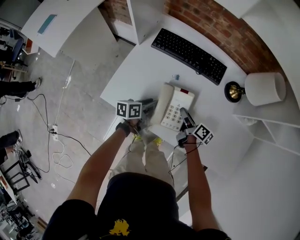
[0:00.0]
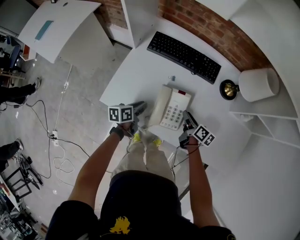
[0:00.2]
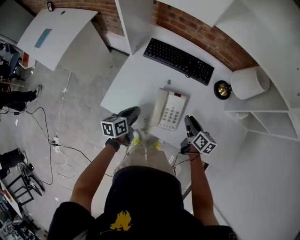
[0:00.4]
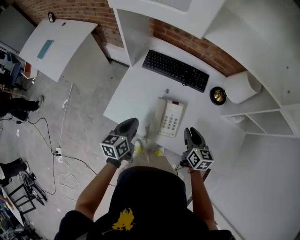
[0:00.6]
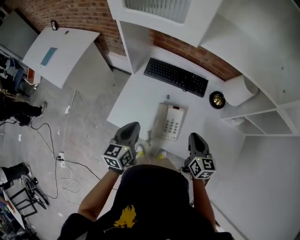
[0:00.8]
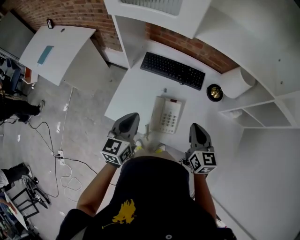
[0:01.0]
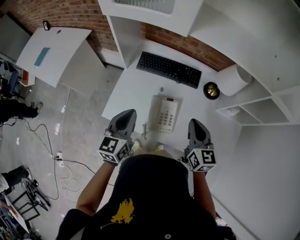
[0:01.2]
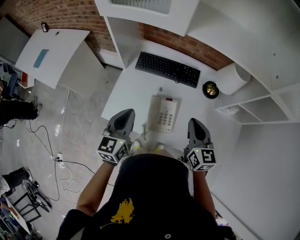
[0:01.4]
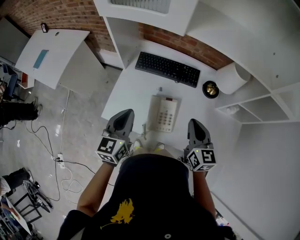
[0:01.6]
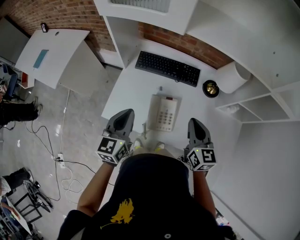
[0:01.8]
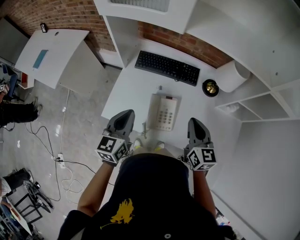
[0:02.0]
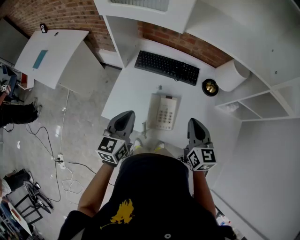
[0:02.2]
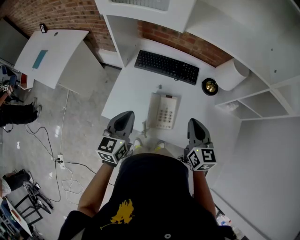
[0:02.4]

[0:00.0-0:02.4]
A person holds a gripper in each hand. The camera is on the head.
0.0 to 1.2 s: The two grippers go some 30 cm upward. The left gripper rotates approximately 50 degrees, and closes up, while the right gripper rotates around the line of its fingers by some 50 degrees, counterclockwise from behind, and closes up.
1.2 to 2.4 s: The grippers make only small movements.

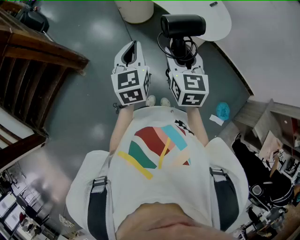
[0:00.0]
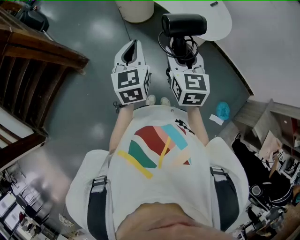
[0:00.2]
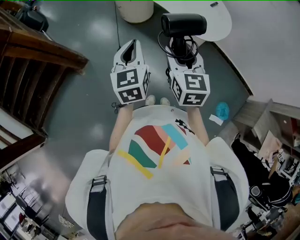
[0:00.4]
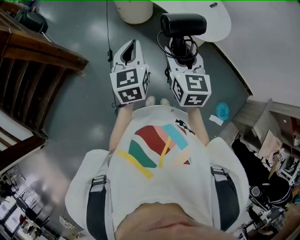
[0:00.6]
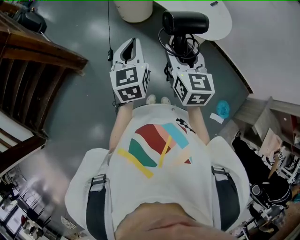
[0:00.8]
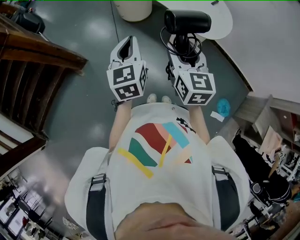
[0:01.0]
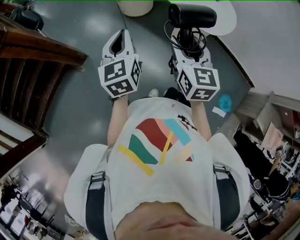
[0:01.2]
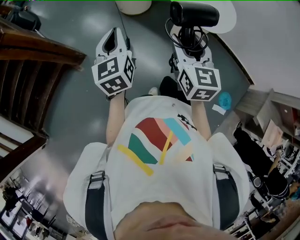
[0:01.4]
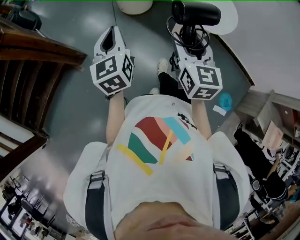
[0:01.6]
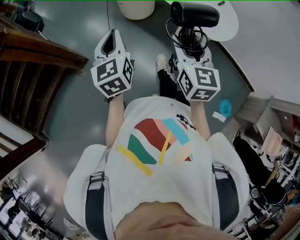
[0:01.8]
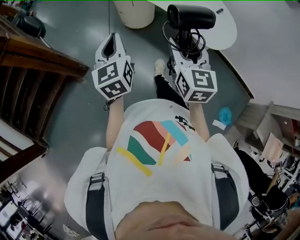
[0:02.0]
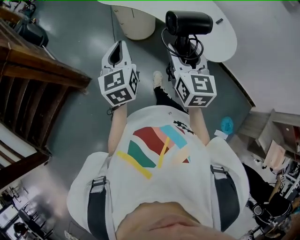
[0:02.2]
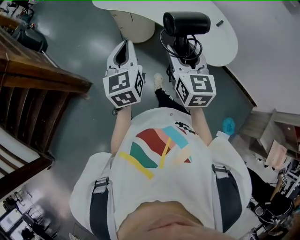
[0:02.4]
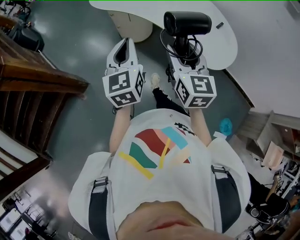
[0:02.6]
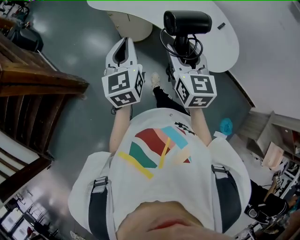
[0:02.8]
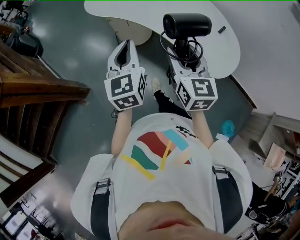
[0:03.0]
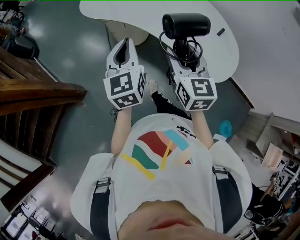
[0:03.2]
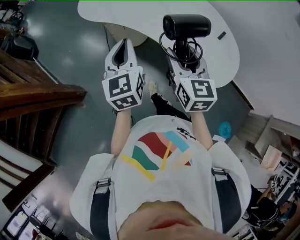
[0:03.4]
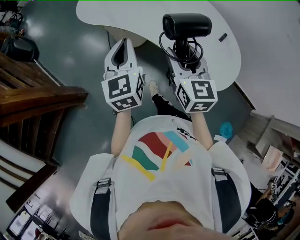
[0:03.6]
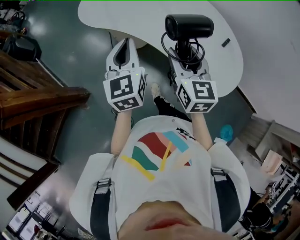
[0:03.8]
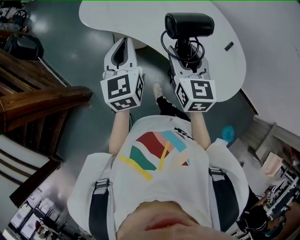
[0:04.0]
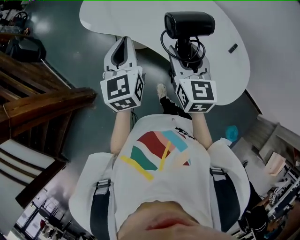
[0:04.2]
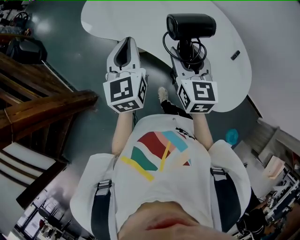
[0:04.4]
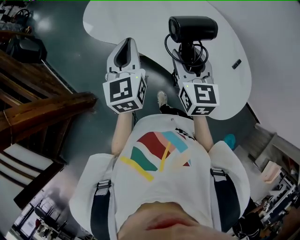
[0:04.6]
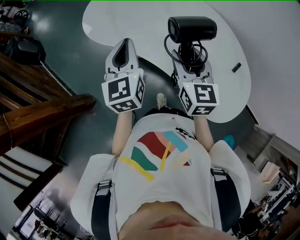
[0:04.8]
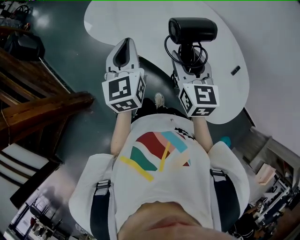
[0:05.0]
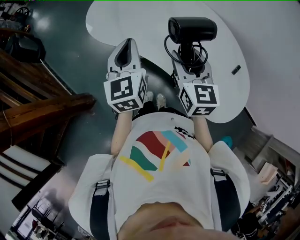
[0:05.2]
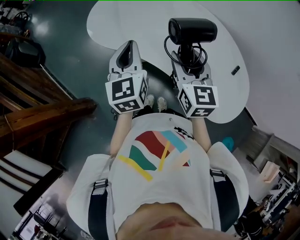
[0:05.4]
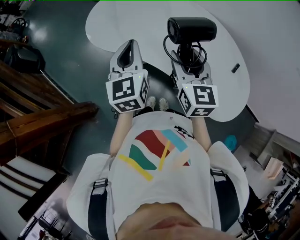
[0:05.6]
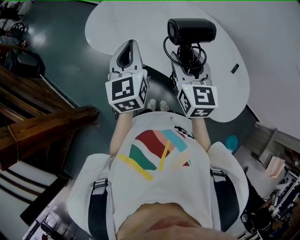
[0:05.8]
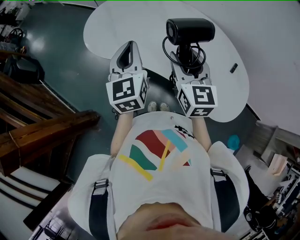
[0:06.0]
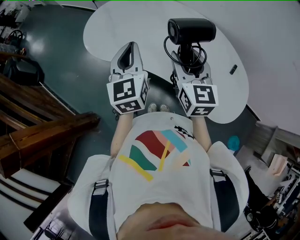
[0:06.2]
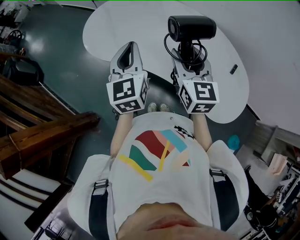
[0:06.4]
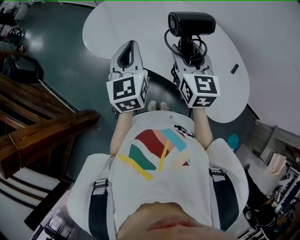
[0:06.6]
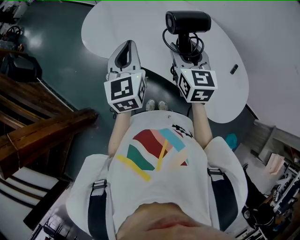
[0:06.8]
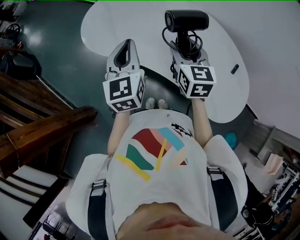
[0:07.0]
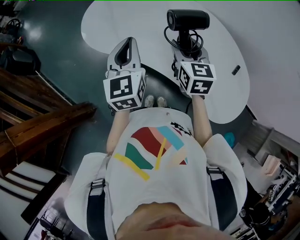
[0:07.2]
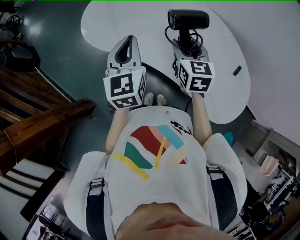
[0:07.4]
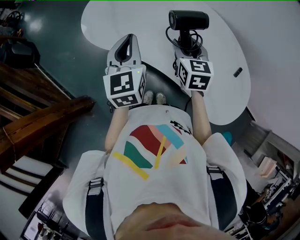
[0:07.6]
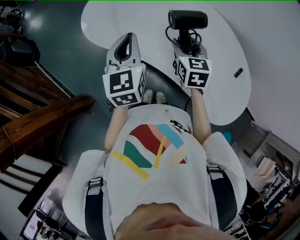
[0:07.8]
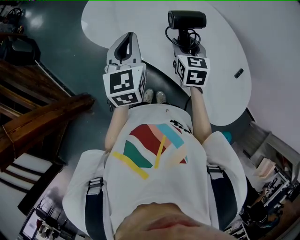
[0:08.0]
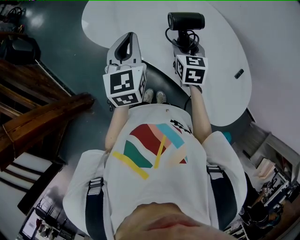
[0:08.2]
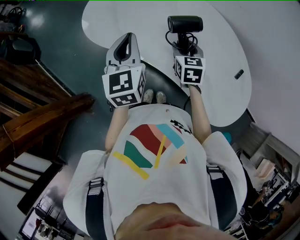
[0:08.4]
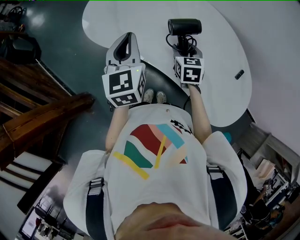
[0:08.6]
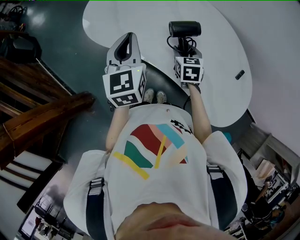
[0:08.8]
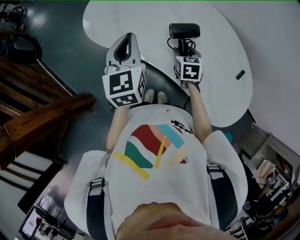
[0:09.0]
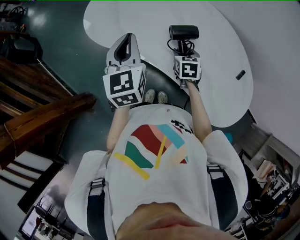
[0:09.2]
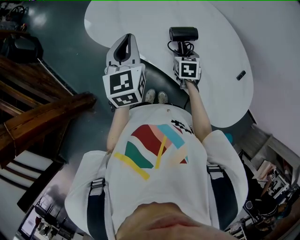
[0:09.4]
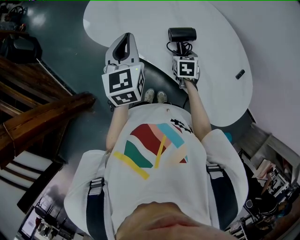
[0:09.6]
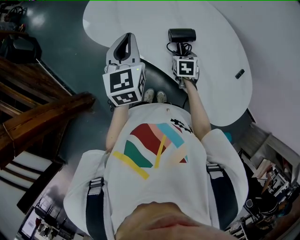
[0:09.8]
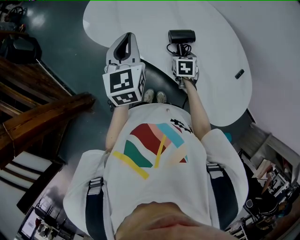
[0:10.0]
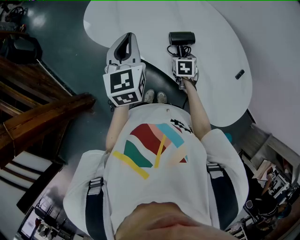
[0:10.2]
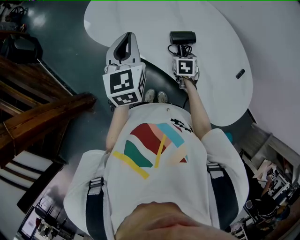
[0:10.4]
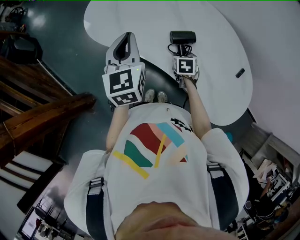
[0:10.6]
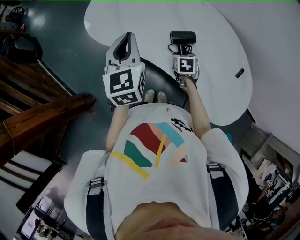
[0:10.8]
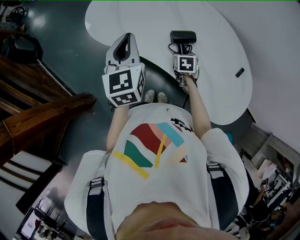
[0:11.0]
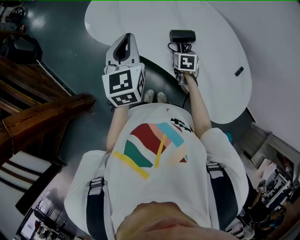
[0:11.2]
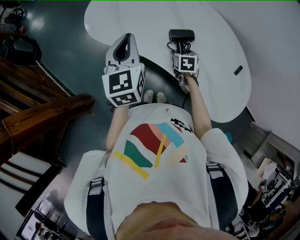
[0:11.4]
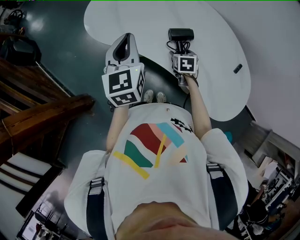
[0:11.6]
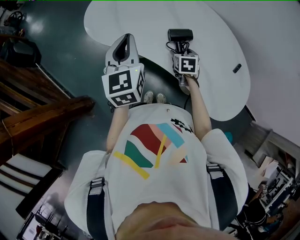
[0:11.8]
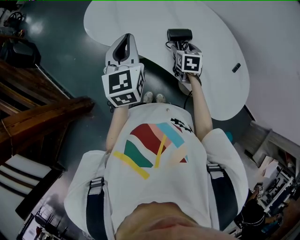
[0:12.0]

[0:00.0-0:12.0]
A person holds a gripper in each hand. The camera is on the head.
0.0 to 1.6 s: The right gripper changes place by approximately 5 cm. The left gripper heads to the left and forward, covering approximately 15 cm.
1.6 to 3.0 s: The left gripper travels forward and to the right by some 20 cm. The right gripper is displaced forward by some 20 cm.
3.0 to 4.4 s: Both grippers travel together forward, some 20 cm.
4.4 to 6.0 s: Both grippers travel together forward, some 5 cm.
6.0 to 7.6 s: The right gripper heads downward and forward, covering roughly 15 cm. The left gripper moves about 5 cm.
7.6 to 9.0 s: The right gripper moves downward, some 15 cm.
9.0 to 10.4 s: The right gripper moves downward, about 5 cm.
10.4 to 12.0 s: The right gripper travels upward by about 5 cm.

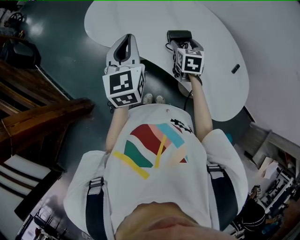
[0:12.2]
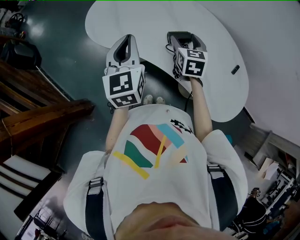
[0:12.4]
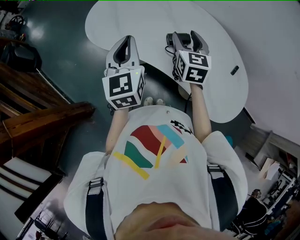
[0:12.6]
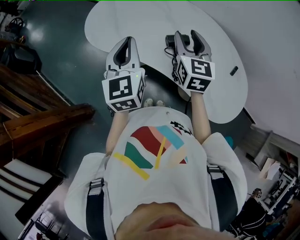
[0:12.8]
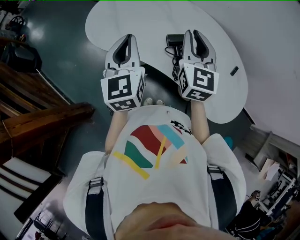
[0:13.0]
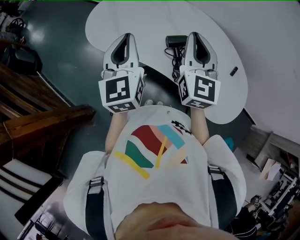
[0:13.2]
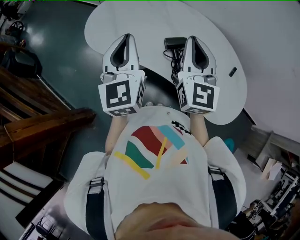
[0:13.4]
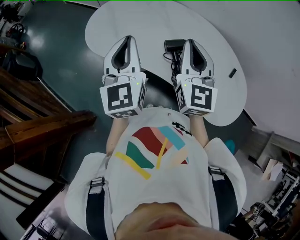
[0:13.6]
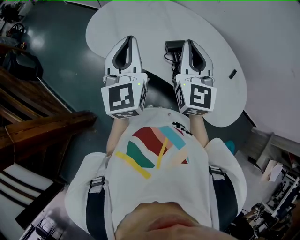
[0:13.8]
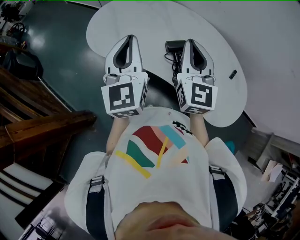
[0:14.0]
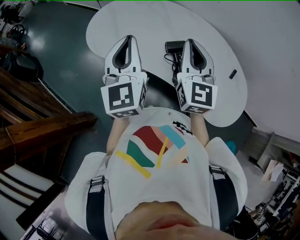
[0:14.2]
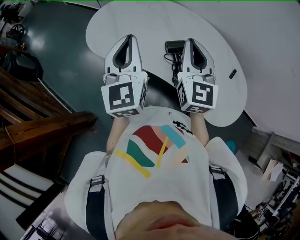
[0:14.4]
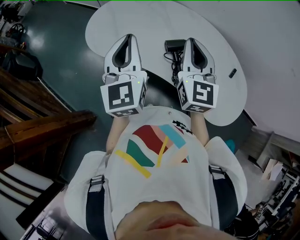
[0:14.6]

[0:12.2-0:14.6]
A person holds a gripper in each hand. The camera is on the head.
12.2 to 13.4 s: The left gripper shifts roughly 5 cm upward, while the right gripper travels upward by roughly 25 cm, angles its fingers upward, by about 40 degrees, and closes up.
13.4 to 14.6 s: Both grippers stay about where they are.

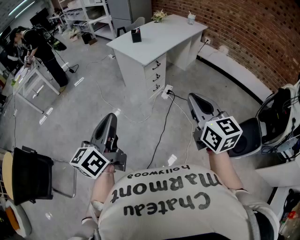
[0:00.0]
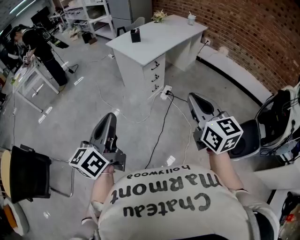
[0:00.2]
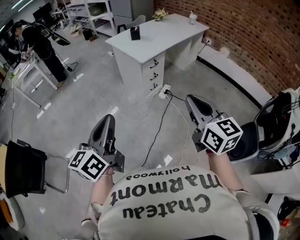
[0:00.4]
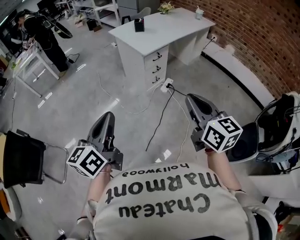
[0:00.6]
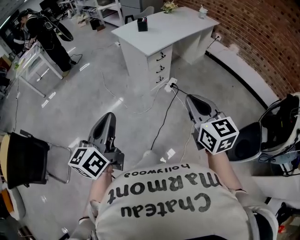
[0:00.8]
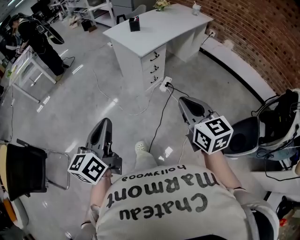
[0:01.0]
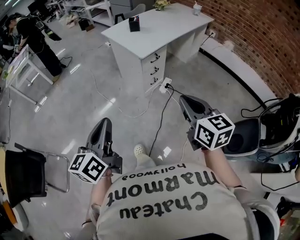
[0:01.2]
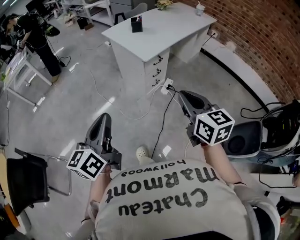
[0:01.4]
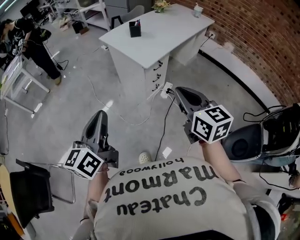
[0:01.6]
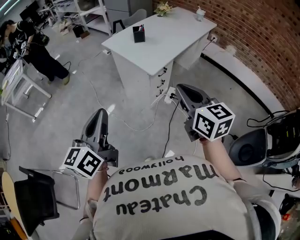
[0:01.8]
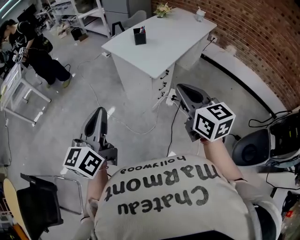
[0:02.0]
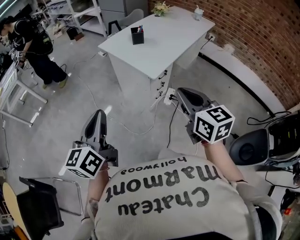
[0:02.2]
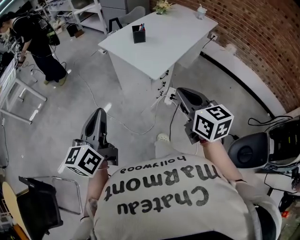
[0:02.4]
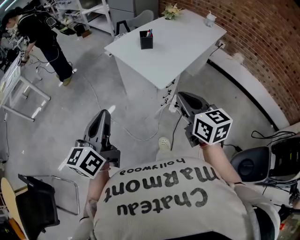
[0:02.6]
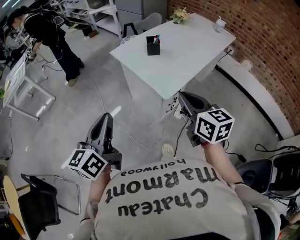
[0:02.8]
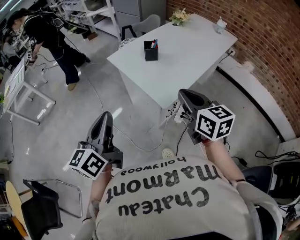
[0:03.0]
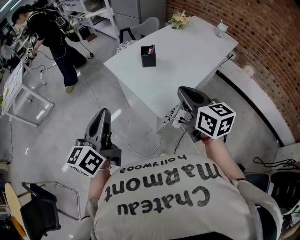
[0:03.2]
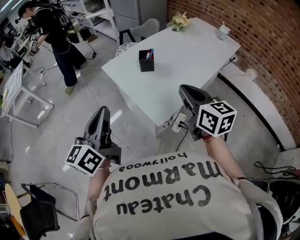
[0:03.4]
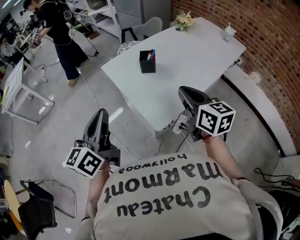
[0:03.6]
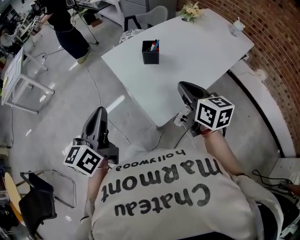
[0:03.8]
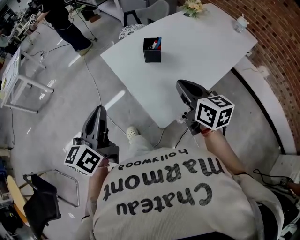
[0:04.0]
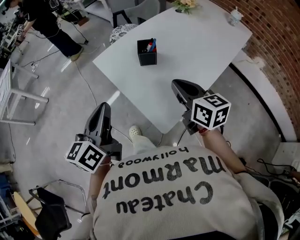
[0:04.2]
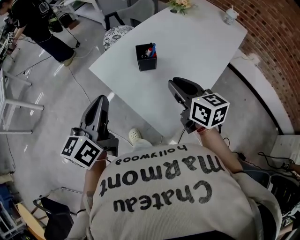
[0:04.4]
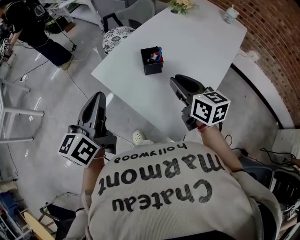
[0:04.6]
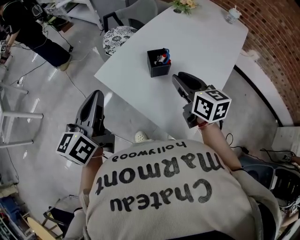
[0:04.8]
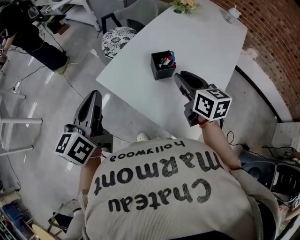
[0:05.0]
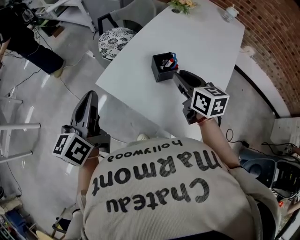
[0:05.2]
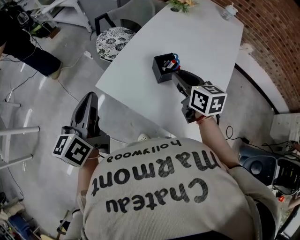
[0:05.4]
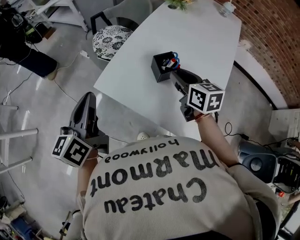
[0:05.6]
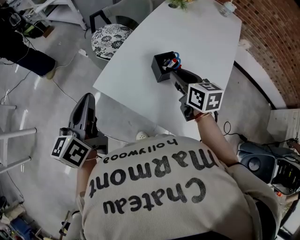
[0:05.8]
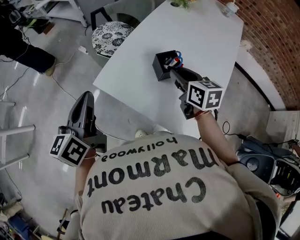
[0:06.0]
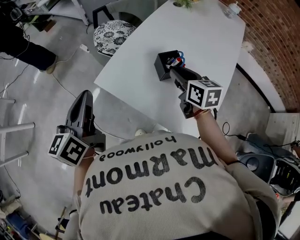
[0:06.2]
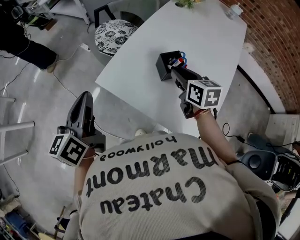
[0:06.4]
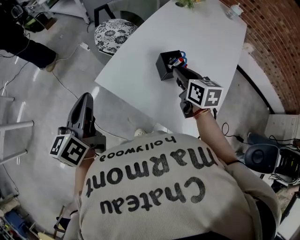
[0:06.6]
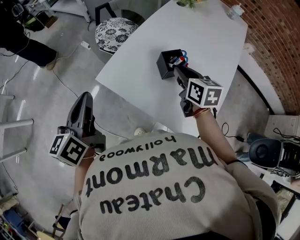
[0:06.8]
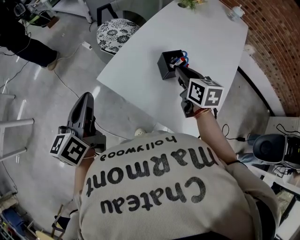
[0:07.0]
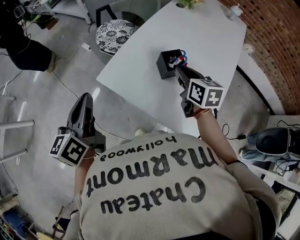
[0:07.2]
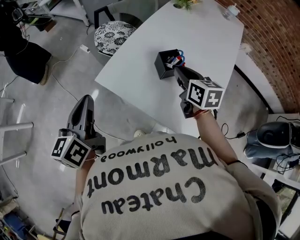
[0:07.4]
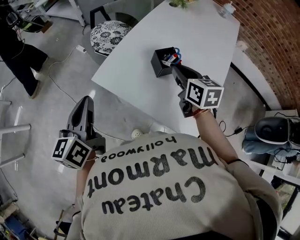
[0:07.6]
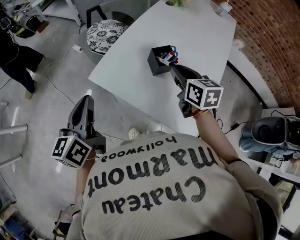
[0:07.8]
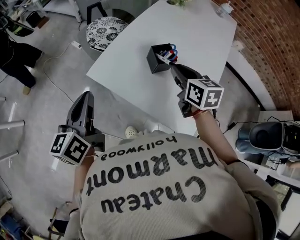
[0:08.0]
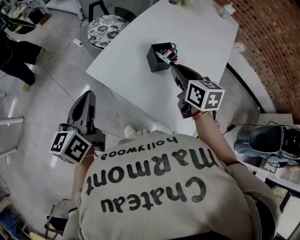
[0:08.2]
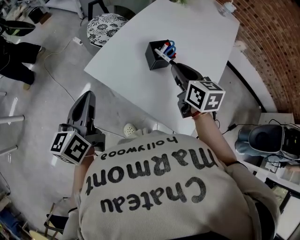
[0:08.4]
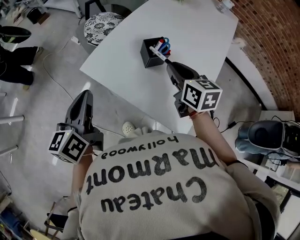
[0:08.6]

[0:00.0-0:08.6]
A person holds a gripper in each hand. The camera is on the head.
0.0 to 1.4 s: The grippers both shift forward and downward by some 15 cm.
1.4 to 2.8 s: The grippers both shift forward by approximately 30 cm.
2.8 to 4.4 s: Both grippers travel together forward, approximately 35 cm.
4.4 to 5.8 s: The right gripper travels forward, to the left and downward by some 20 cm, and turns by approximately 20 degrees; the left gripper travels forward and to the left by roughly 25 cm.
5.8 to 7.2 s: The grippers move only a little.
7.2 to 8.6 s: The left gripper travels to the right by roughly 5 cm, while the right gripper moves backward, approximately 5 cm.
